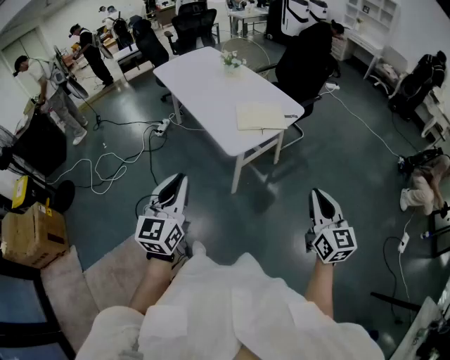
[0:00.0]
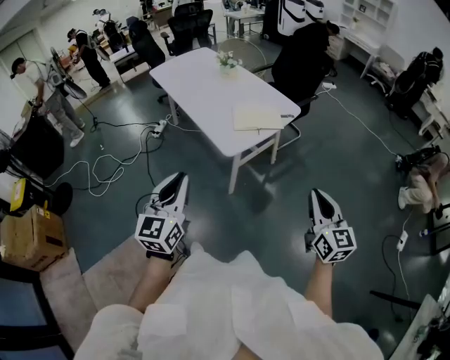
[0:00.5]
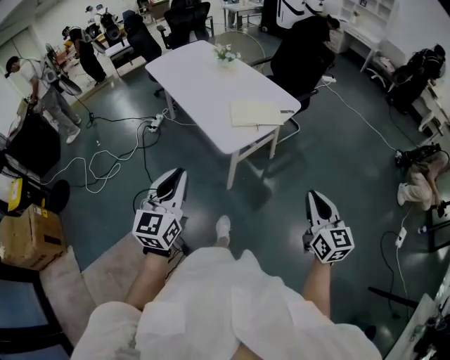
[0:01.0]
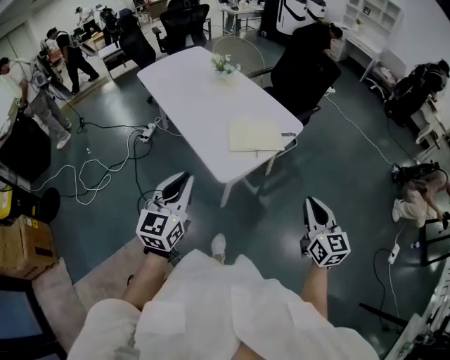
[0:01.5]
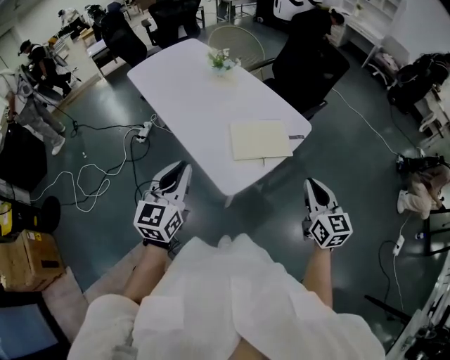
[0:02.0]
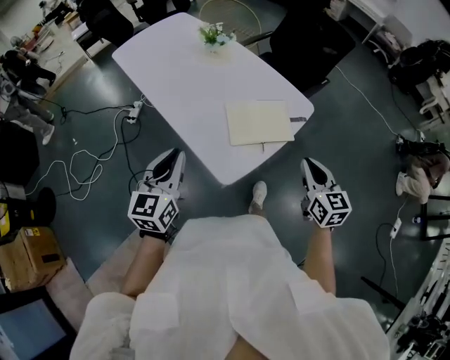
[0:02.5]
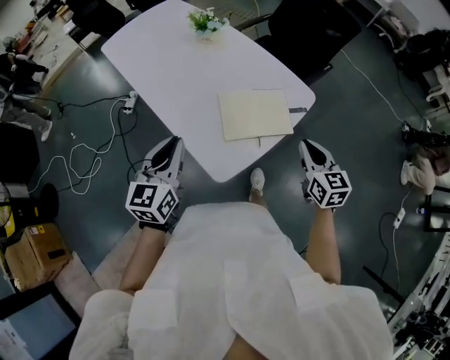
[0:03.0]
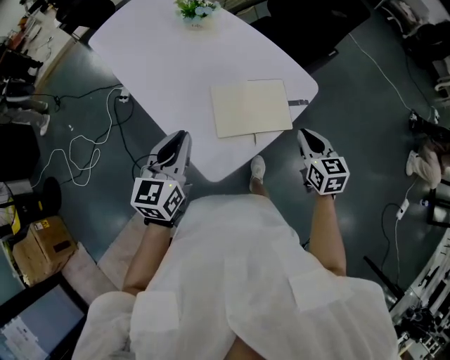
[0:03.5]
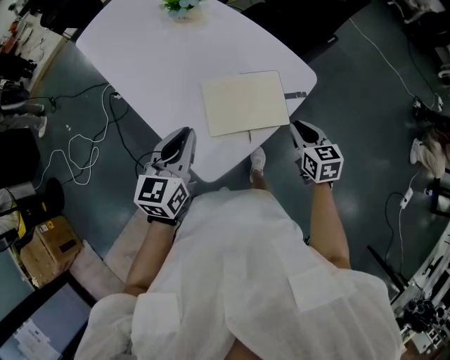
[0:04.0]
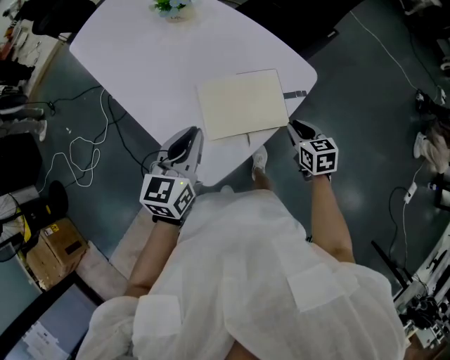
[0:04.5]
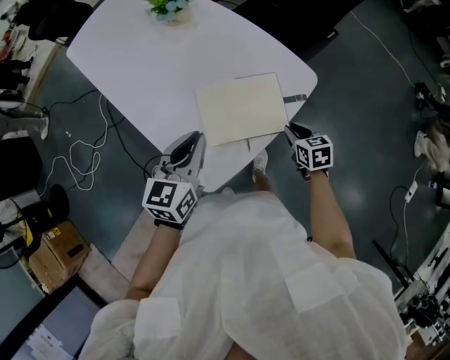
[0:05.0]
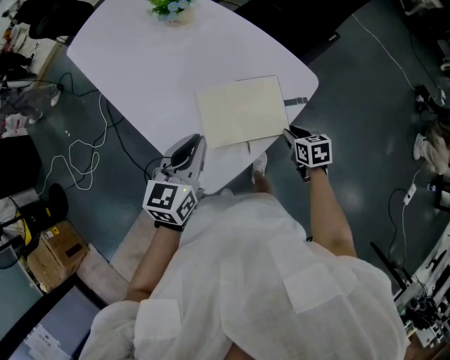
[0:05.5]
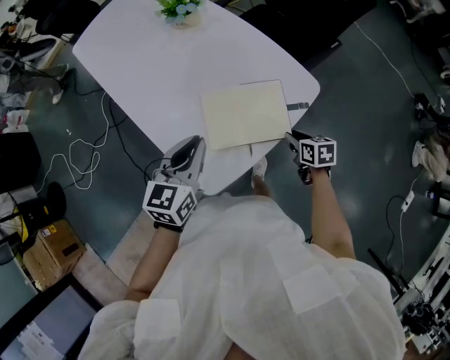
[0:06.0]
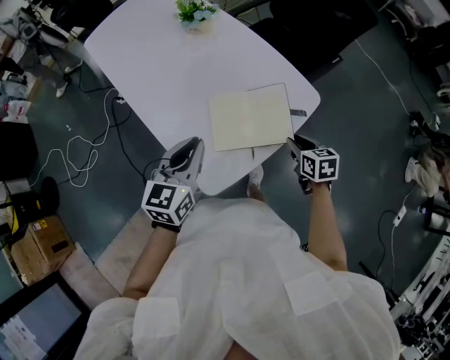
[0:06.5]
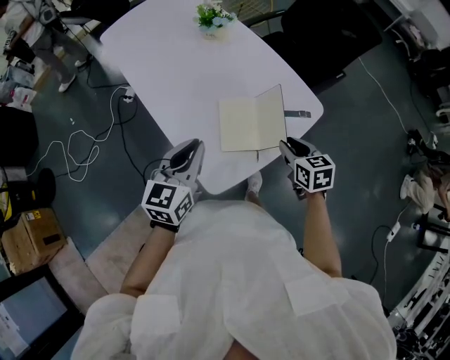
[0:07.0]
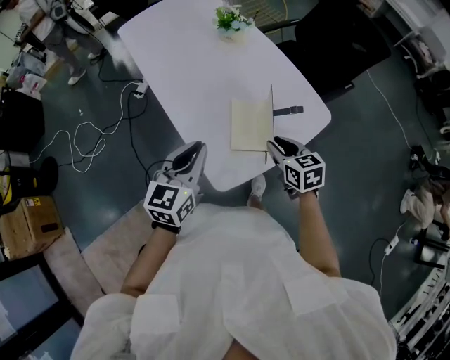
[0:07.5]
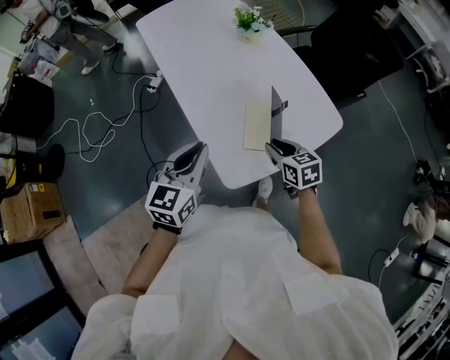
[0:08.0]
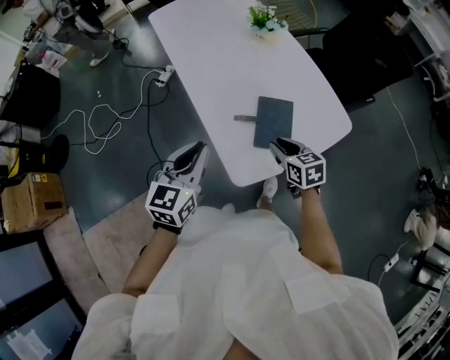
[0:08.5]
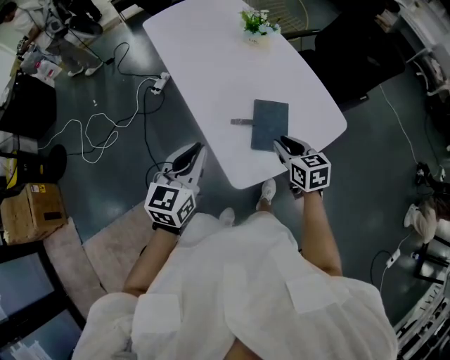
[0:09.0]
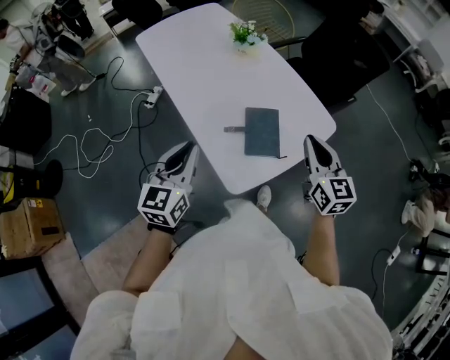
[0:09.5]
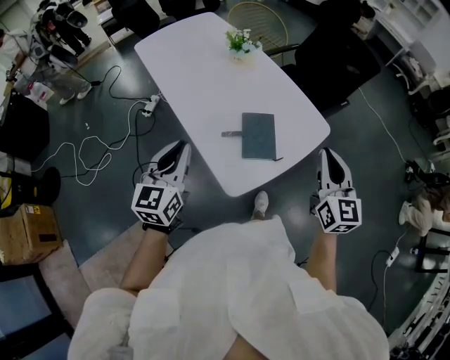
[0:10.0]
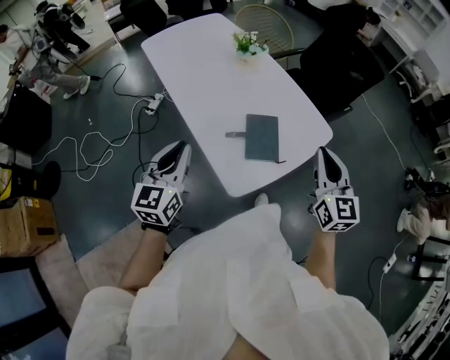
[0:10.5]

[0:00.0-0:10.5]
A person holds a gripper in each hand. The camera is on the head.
0:00.0 to 0:02.0: The grippers both shift forward by roughly 30 cm.
0:02.0 to 0:04.0: The right gripper moves forward and downward, some 30 cm, and changes its angle by approximately 30 degrees, while the left gripper moves forward, to the right and downward, approximately 25 cm.
0:04.0 to 0:06.5: The right gripper reaches about 10 cm downward, then returns.
0:06.5 to 0:08.5: The right gripper travels to the left by about 20 cm, and turns by approximately 20 degrees. The left gripper is displaced to the left and backward by approximately 15 cm.
0:08.5 to 0:10.5: The left gripper shifts approximately 5 cm upward; the right gripper travels upward and to the right by approximately 25 cm, tips its fingers upward by about 30 degrees, and closes up.

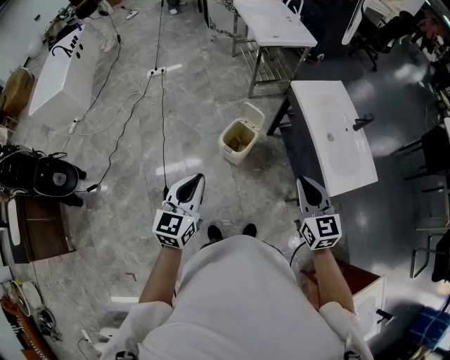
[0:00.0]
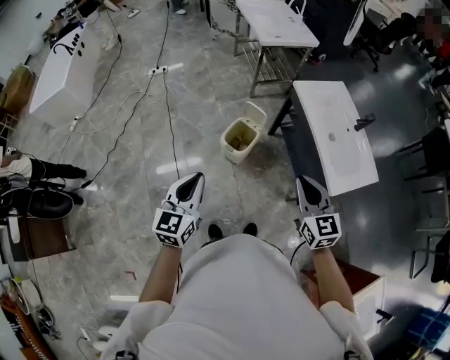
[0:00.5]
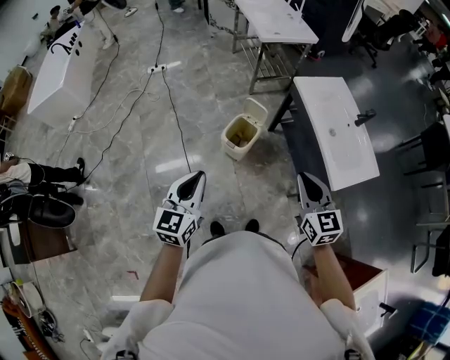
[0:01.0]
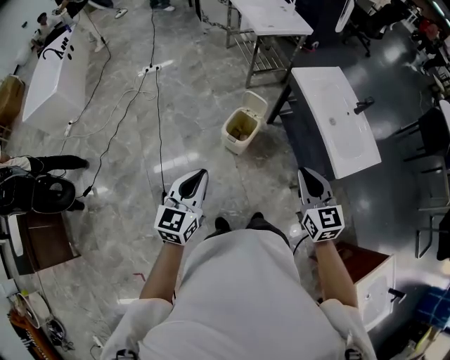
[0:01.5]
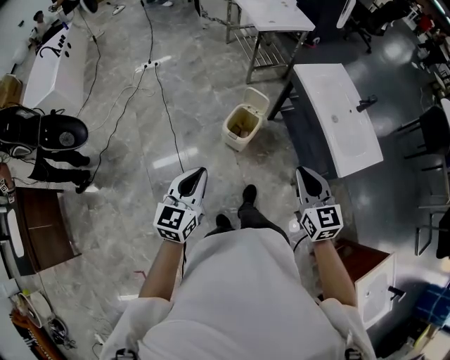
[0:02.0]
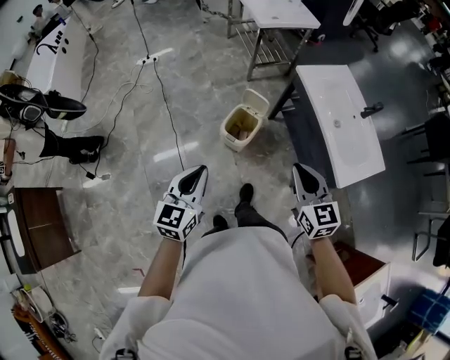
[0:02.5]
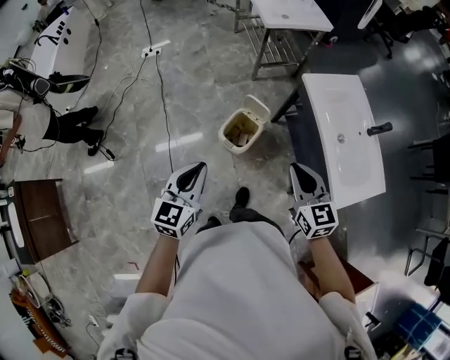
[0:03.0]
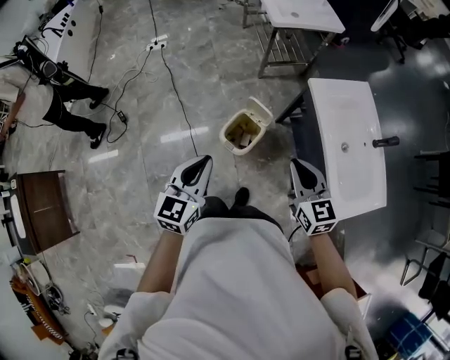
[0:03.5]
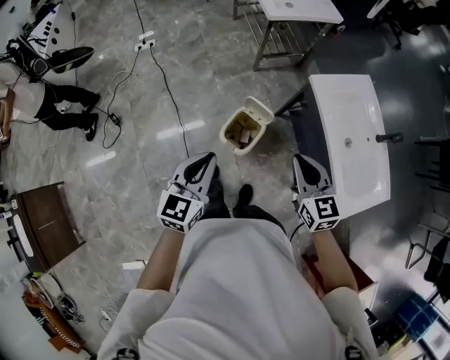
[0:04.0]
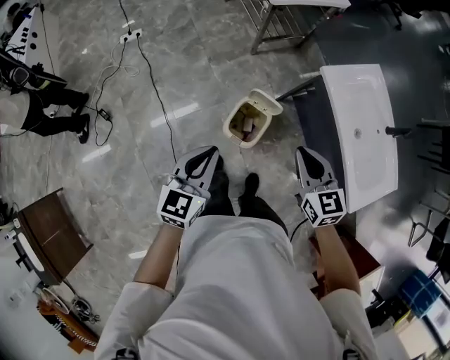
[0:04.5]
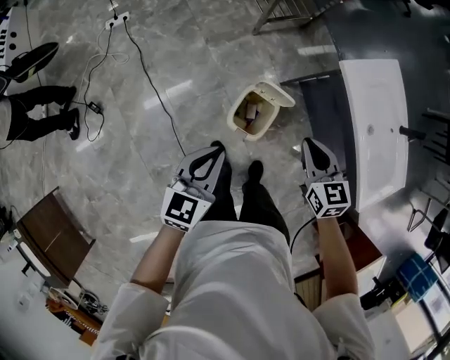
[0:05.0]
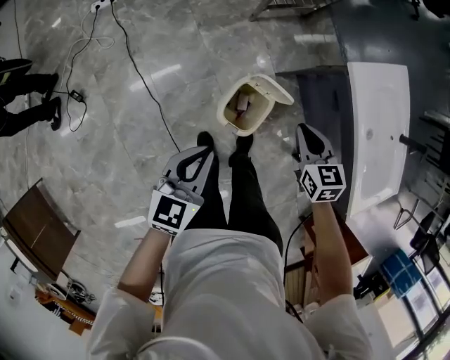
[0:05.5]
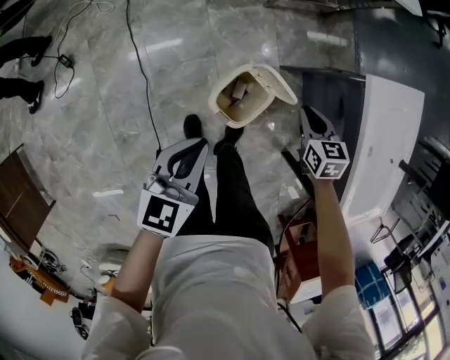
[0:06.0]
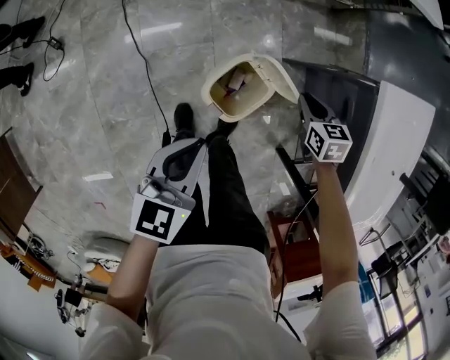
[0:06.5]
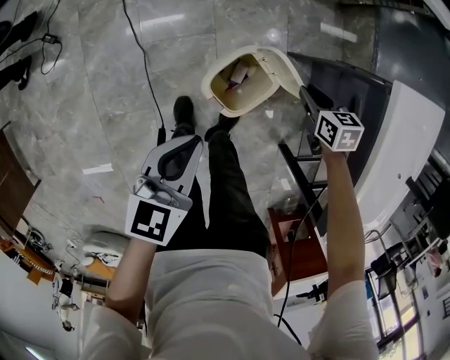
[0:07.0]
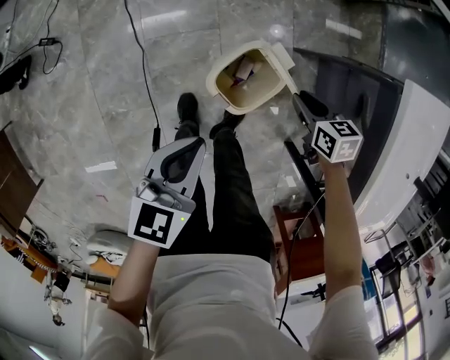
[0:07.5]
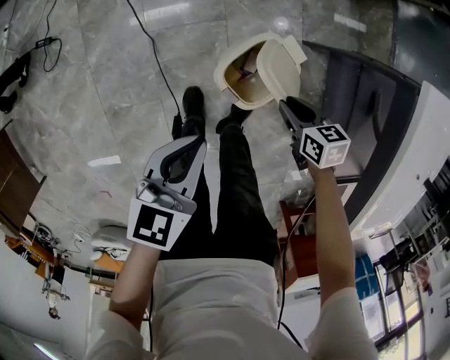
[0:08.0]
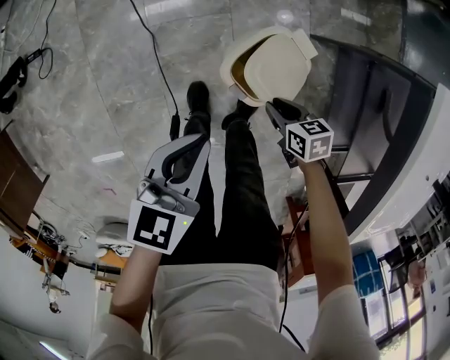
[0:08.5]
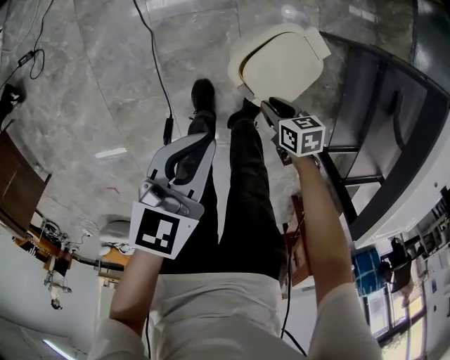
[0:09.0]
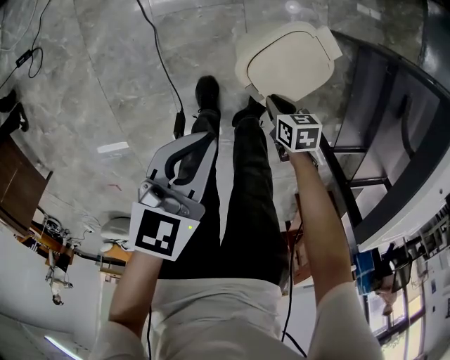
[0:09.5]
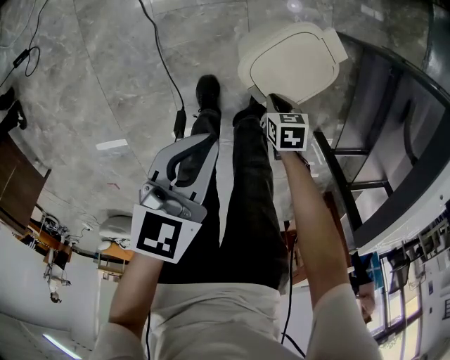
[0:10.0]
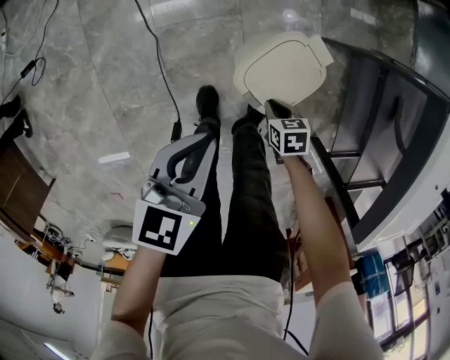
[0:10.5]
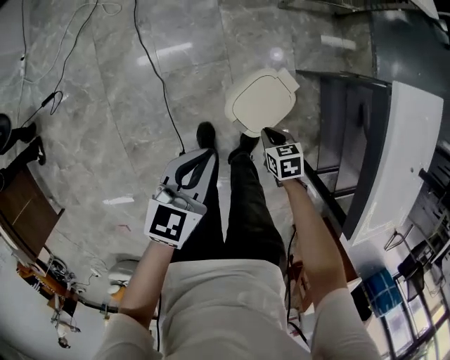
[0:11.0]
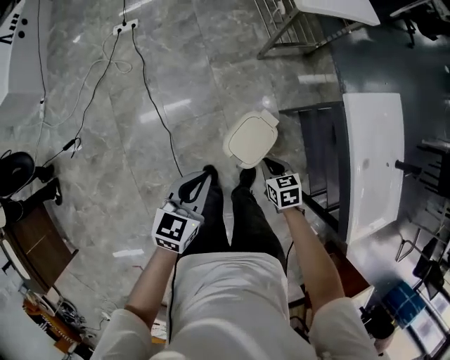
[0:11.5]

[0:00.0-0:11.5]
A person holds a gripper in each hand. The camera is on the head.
0:00.0 to 0:02.0: The two grippers go about 5 cm to the left.
0:02.0 to 0:04.0: The grippers both shift forward by about 25 cm.
0:04.0 to 0:06.0: The right gripper is displaced downward and forward by roughly 35 cm, and changes its angle by approximately 30 degrees. Meanwhile the left gripper travels downward and forward by approximately 20 cm.
0:06.0 to 0:07.5: Both grippers travel together downward, approximately 10 cm.
0:07.5 to 0:09.5: The left gripper heads downward and to the left, covering approximately 10 cm. The right gripper heads downward, to the left and backward, covering roughly 25 cm.
0:09.5 to 0:11.5: The two grippers go roughly 25 cm upward. The right gripper swivels about 20 degrees.

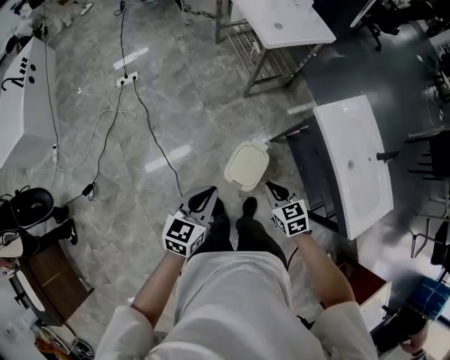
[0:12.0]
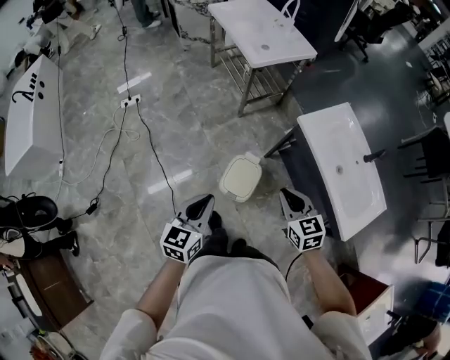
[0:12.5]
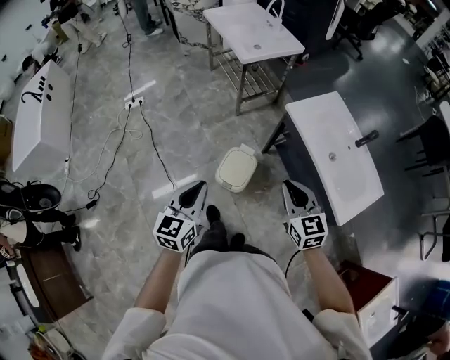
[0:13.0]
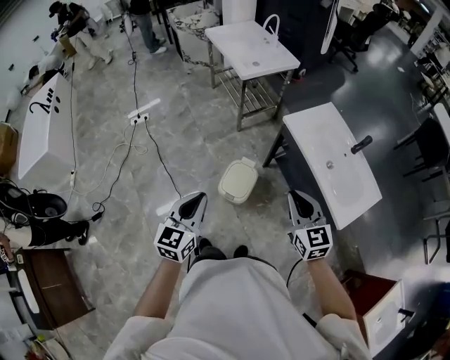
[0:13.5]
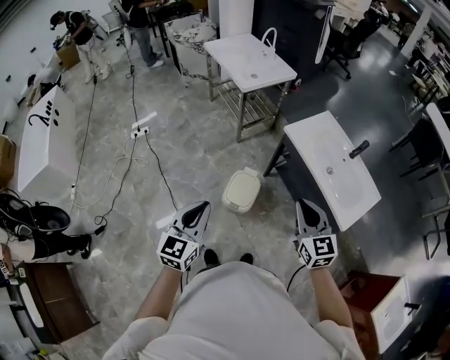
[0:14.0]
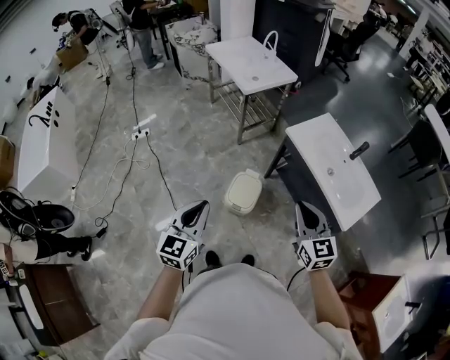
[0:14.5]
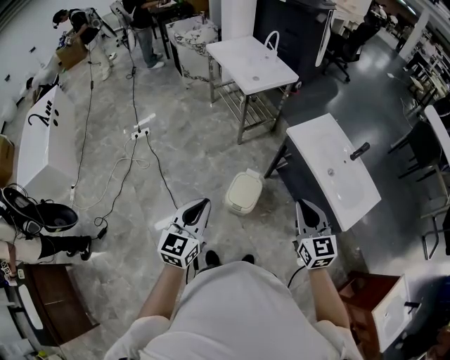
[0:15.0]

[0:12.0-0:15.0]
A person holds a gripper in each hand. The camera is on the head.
0:12.0 to 0:13.5: The left gripper shifts some 20 cm upward, backward and to the right. The right gripper heads upward, to the right and backward, covering roughly 30 cm, and rotates some 30 degrees.
0:13.5 to 0:15.0: The left gripper travels to the left by roughly 5 cm, while the right gripper shifts by approximately 5 cm.

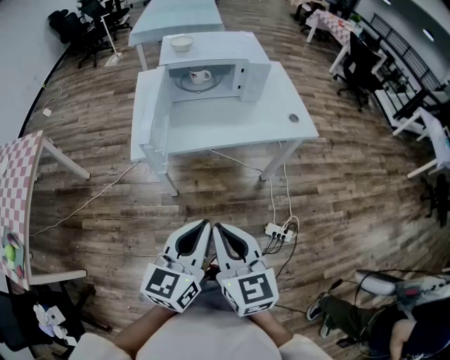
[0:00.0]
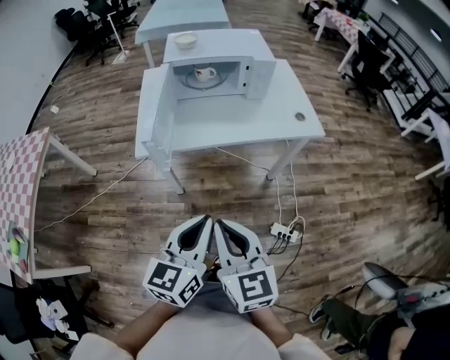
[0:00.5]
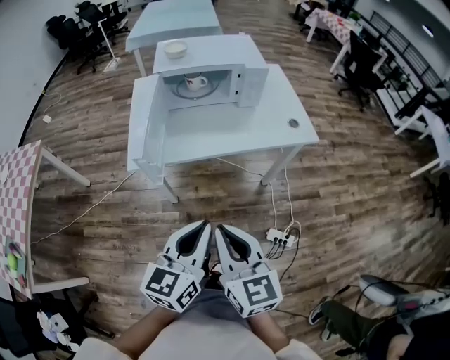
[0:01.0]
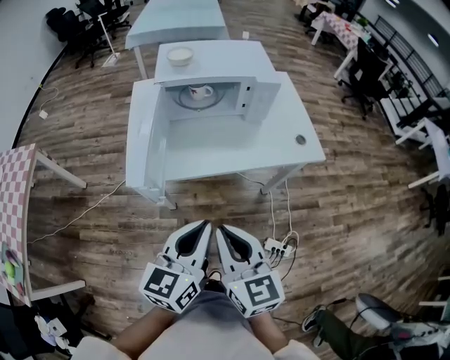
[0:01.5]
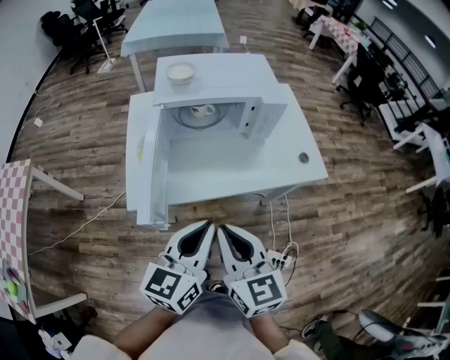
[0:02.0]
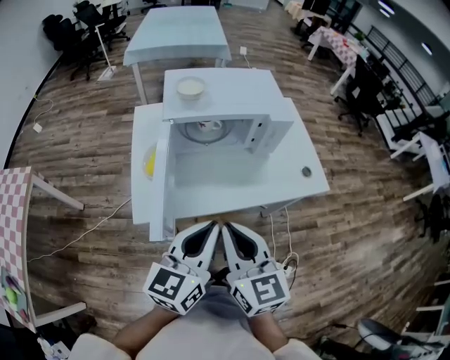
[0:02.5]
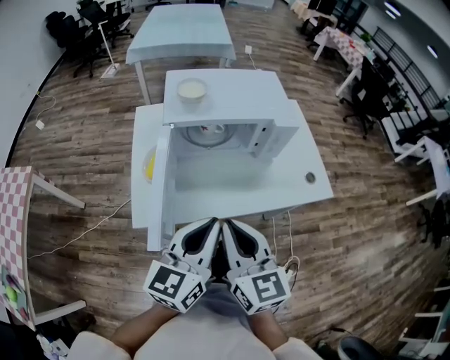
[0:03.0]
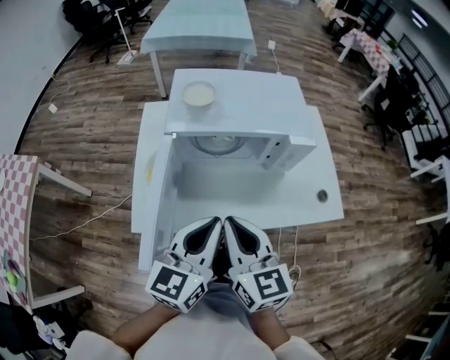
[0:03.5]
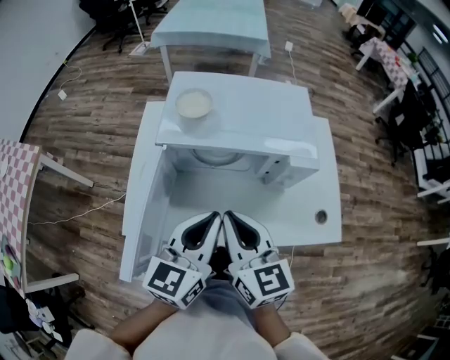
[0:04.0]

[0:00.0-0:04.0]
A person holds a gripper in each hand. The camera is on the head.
0:00.0 to 0:02.0: The two grippers go some 20 cm forward.
0:02.0 to 0:04.0: Both grippers travel together forward, about 20 cm.
